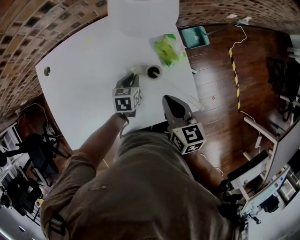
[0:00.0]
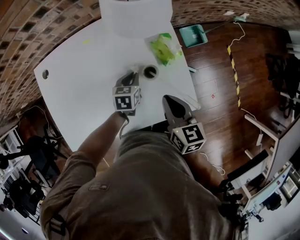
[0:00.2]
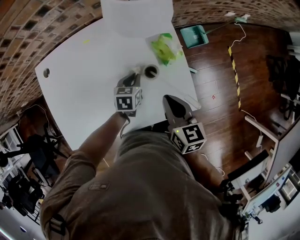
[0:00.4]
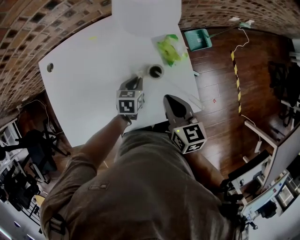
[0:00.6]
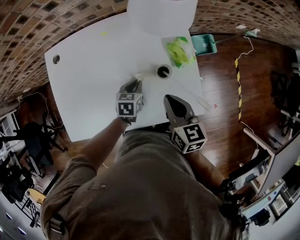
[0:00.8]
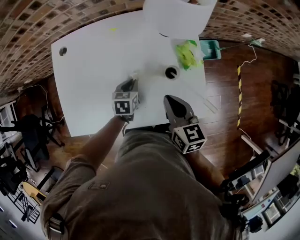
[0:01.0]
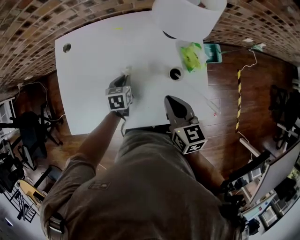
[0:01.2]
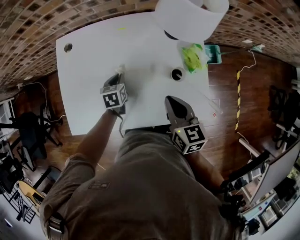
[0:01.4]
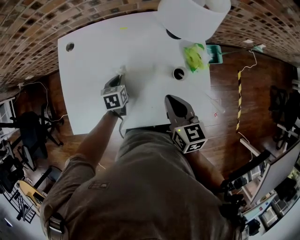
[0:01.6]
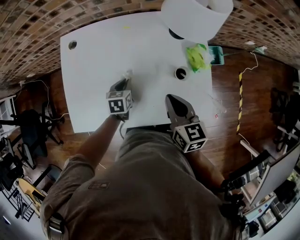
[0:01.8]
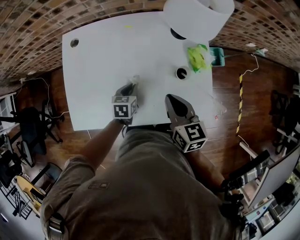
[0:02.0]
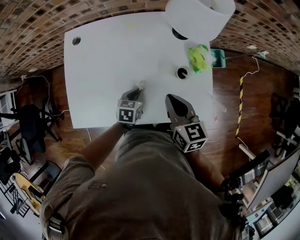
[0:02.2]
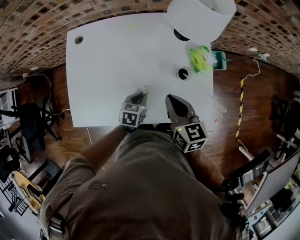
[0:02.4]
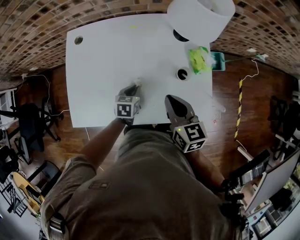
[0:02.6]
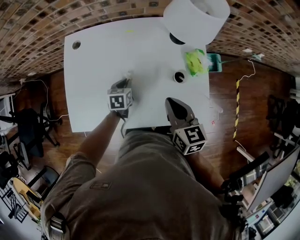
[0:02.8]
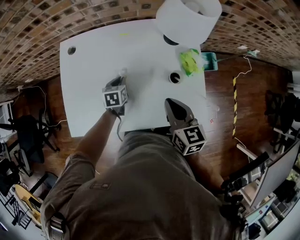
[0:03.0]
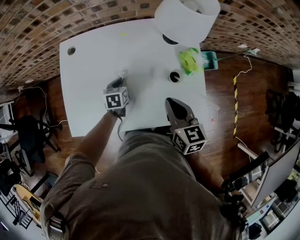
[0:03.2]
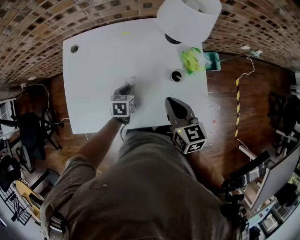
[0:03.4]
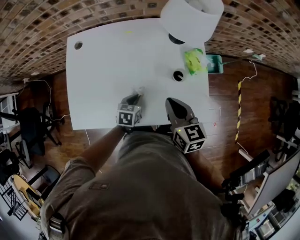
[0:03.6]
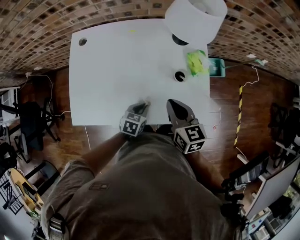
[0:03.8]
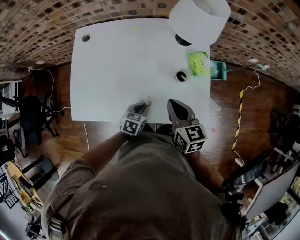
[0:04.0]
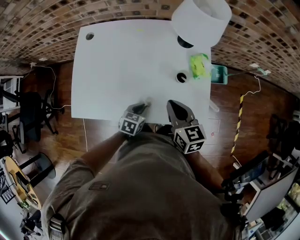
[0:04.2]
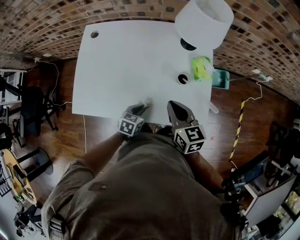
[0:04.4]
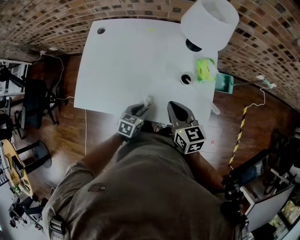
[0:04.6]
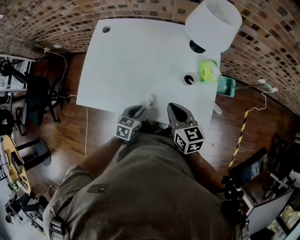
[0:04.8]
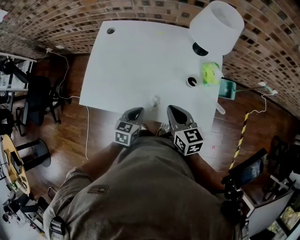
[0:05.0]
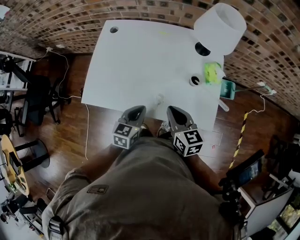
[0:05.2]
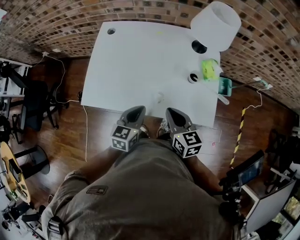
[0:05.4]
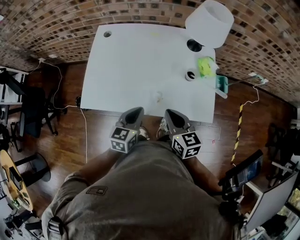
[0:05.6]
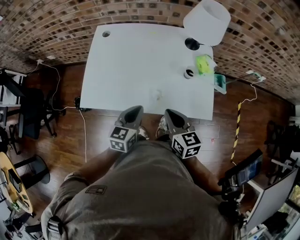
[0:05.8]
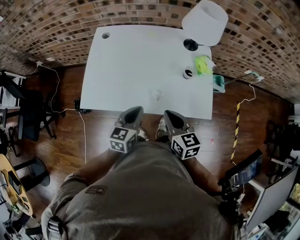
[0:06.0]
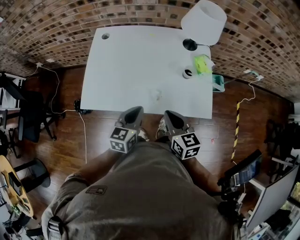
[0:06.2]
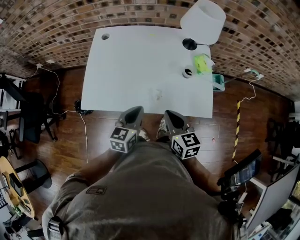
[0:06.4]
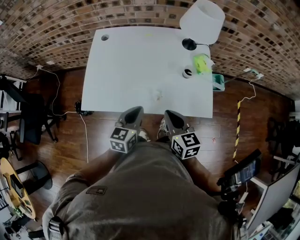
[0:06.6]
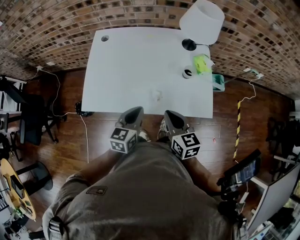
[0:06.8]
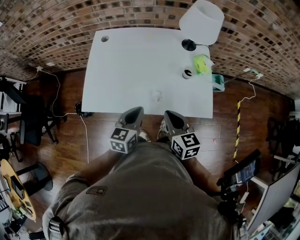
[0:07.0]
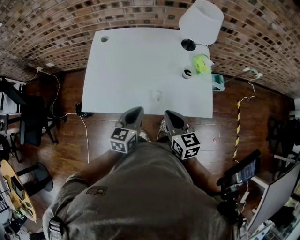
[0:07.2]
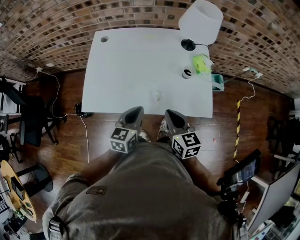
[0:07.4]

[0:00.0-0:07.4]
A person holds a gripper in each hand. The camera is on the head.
0:00.0 to 0:01.4: The right gripper travels to the left by roughly 5 cm, while the left gripper is displaced to the left by some 20 cm, and swivels about 20 degrees.
0:01.4 to 0:03.0: The left gripper travels backward and back again, some 10 cm each way.
0:03.0 to 0:04.4: The left gripper moves backward and to the right, about 20 cm.
0:04.4 to 0:06.0: The left gripper shifts some 20 cm upward and to the left, and turns by roughly 30 degrees, while the right gripper goes some 15 cm backward and to the left.
0:06.0 to 0:07.4: Neither gripper changes place.

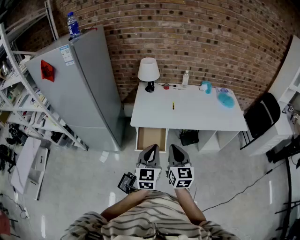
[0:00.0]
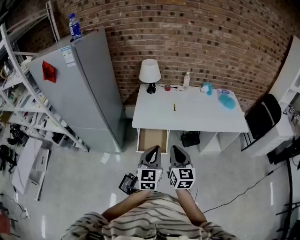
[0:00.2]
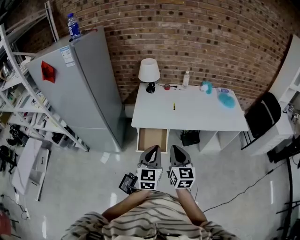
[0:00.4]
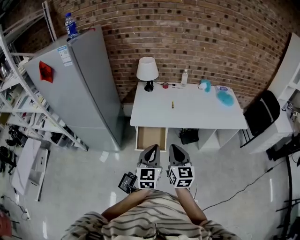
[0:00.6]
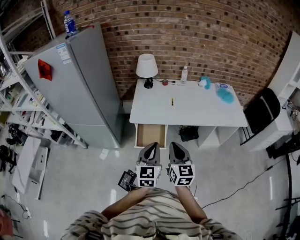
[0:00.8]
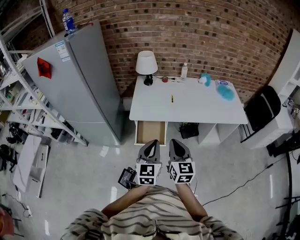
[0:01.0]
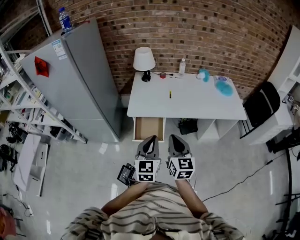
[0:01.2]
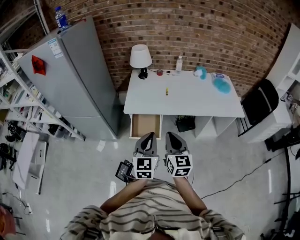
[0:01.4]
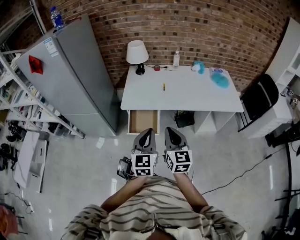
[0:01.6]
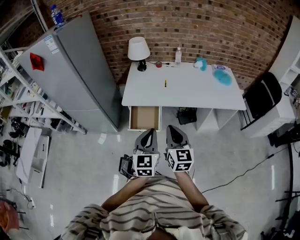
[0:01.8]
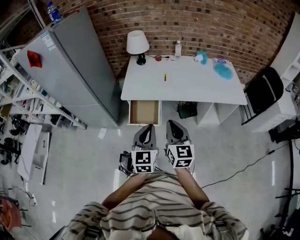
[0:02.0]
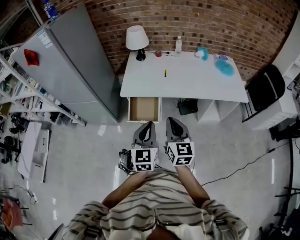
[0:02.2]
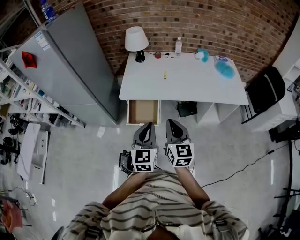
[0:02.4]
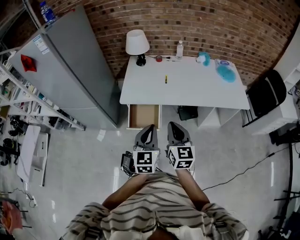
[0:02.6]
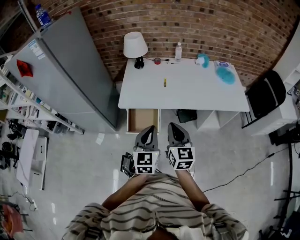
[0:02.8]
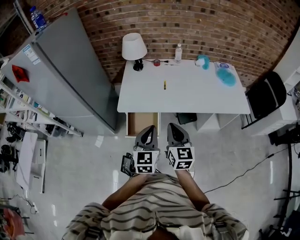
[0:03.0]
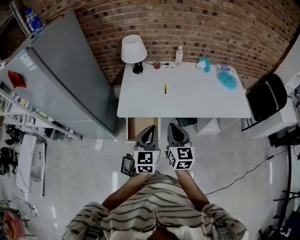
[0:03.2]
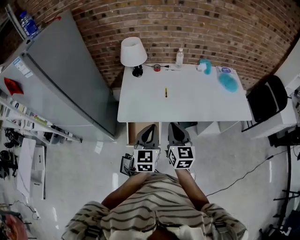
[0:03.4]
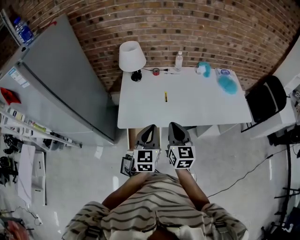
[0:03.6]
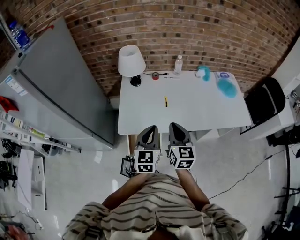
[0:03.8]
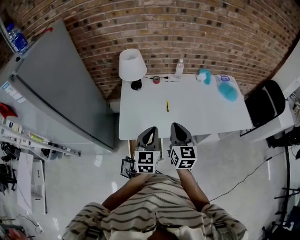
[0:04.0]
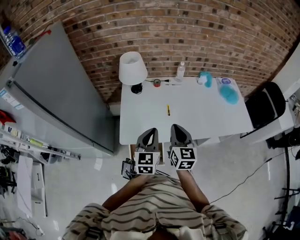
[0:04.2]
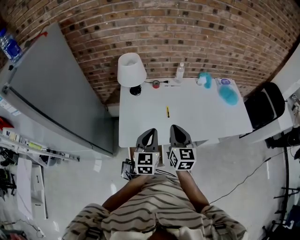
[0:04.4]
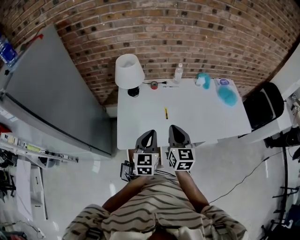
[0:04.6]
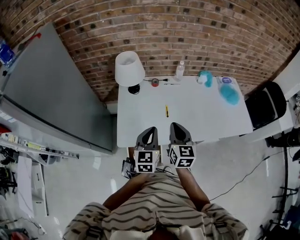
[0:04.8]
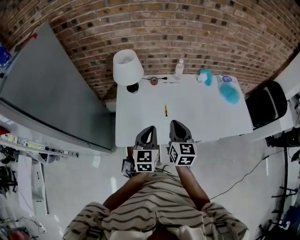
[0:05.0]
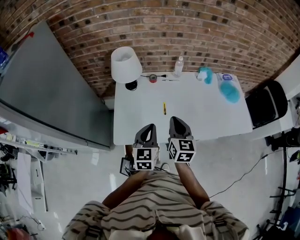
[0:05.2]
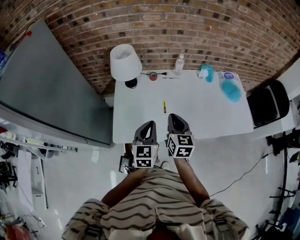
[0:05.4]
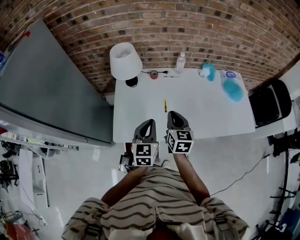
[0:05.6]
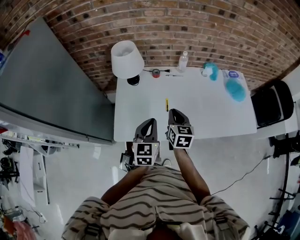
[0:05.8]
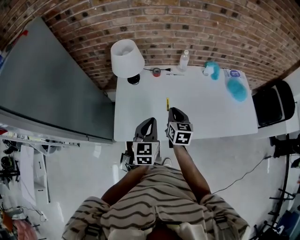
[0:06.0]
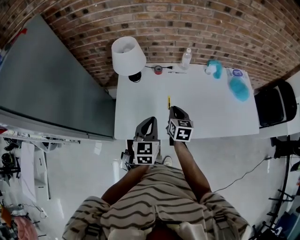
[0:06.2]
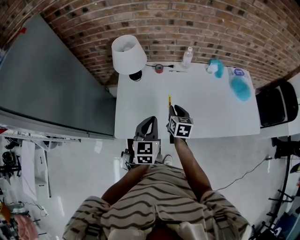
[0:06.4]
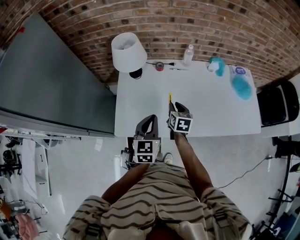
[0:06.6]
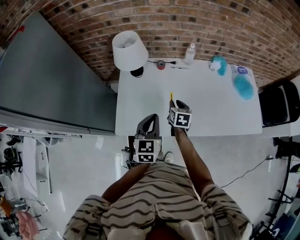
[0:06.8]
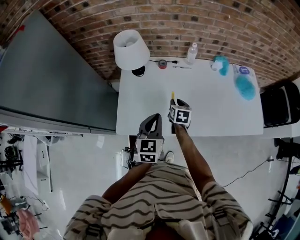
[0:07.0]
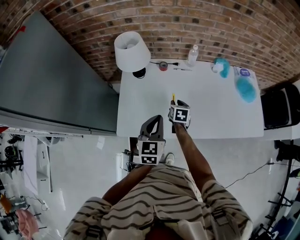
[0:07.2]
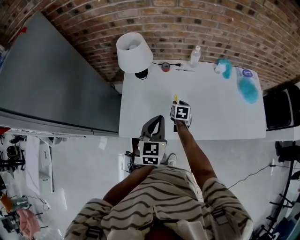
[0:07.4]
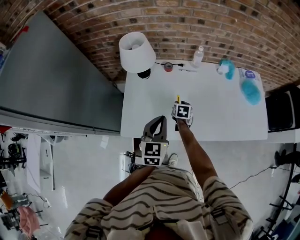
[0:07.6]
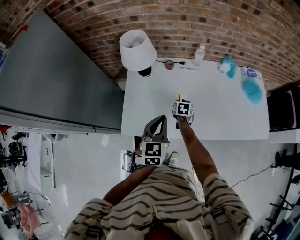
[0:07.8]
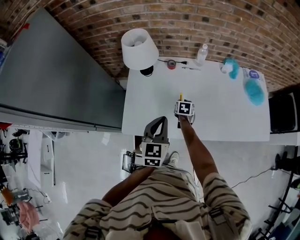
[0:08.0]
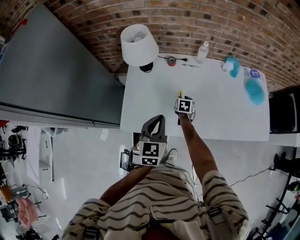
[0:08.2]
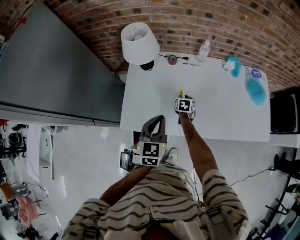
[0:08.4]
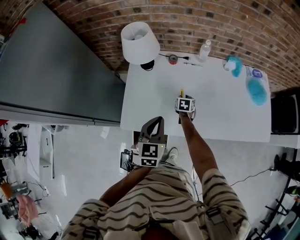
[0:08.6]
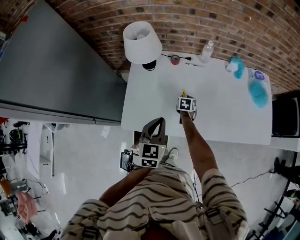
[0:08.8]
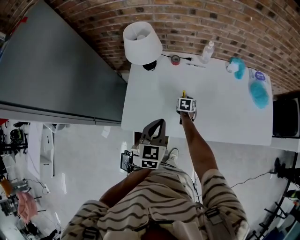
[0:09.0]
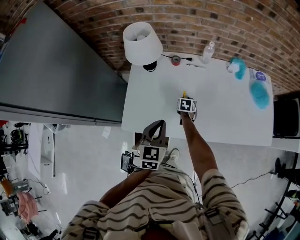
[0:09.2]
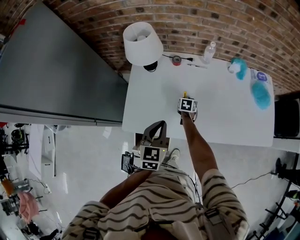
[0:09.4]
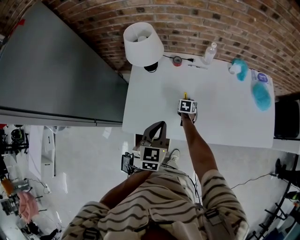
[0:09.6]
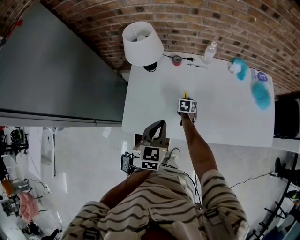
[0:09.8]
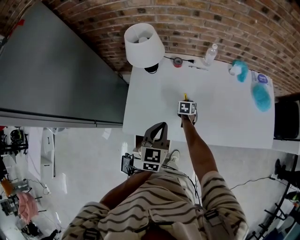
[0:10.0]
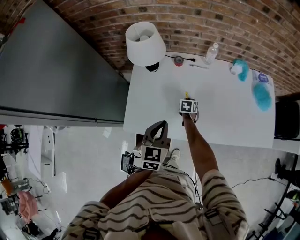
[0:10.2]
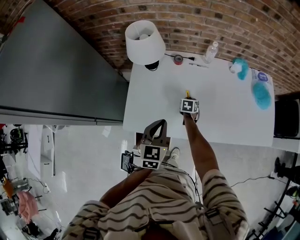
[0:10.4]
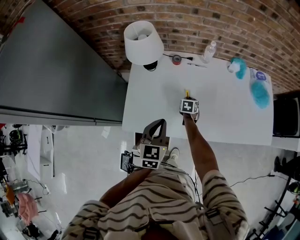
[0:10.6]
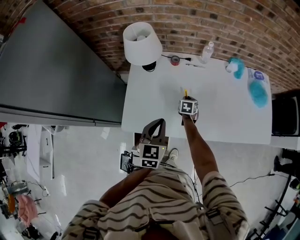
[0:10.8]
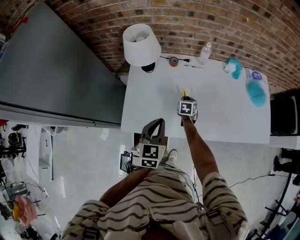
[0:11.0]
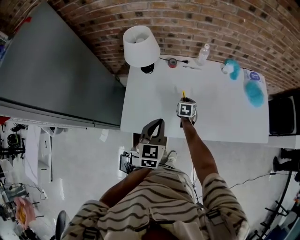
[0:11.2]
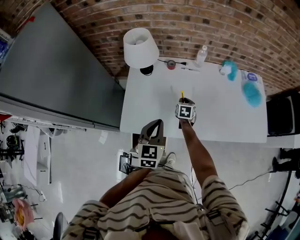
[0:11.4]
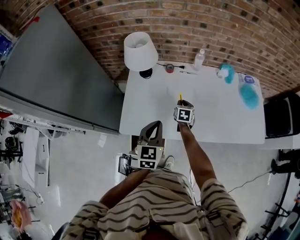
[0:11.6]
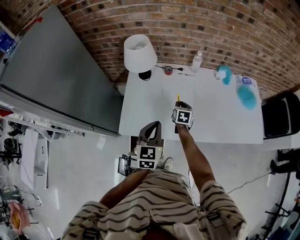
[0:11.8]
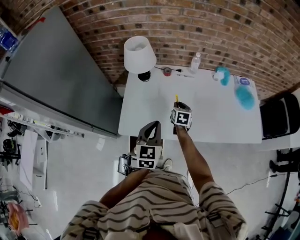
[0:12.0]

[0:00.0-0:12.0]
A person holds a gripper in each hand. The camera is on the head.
0:00.0 to 0:01.6: Both grippers move to the right, roughly 5 cm.
0:01.6 to 0:03.0: The grippers both shift forward by about 10 cm.
0:03.0 to 0:04.4: The grippers both shift forward by approximately 25 cm.
0:04.4 to 0:06.0: The right gripper is displaced forward and downward by approximately 15 cm. Meanwhile the left gripper moves forward, some 10 cm.
0:06.0 to 0:07.6: The right gripper is displaced downward and forward by about 20 cm, changes its angle by some 20 degrees, and opens up.
0:07.6 to 0:09.0: The right gripper moves downward, approximately 5 cm.
0:09.0 to 0:10.4: The grippers move only a little.
0:10.4 to 0:12.0: The left gripper heads upward and backward, covering some 5 cm, while the right gripper heads upward and backward, covering roughly 15 cm, and swivels approximately 20 degrees.

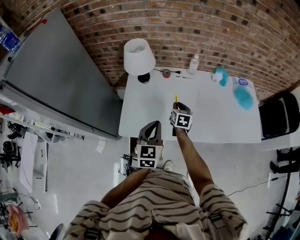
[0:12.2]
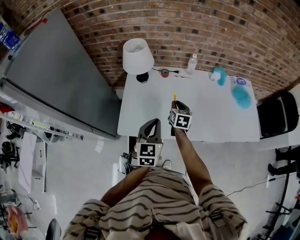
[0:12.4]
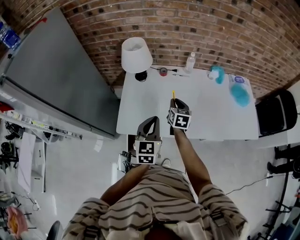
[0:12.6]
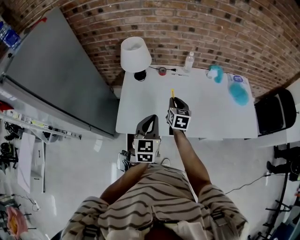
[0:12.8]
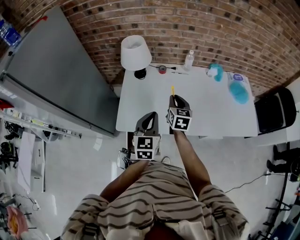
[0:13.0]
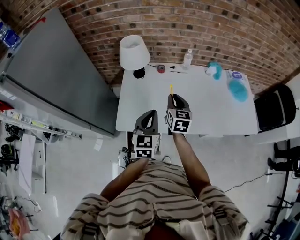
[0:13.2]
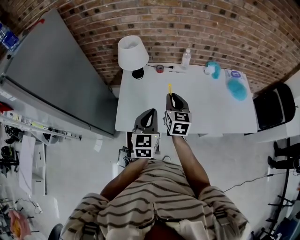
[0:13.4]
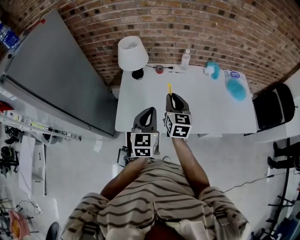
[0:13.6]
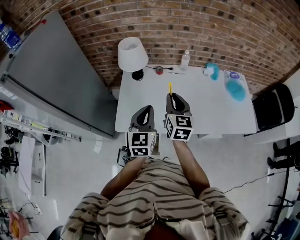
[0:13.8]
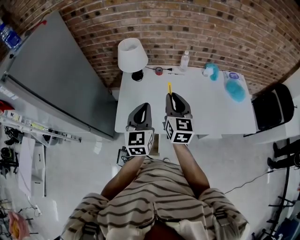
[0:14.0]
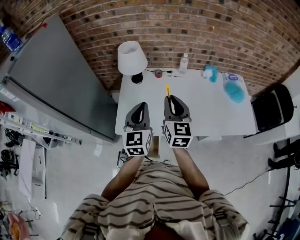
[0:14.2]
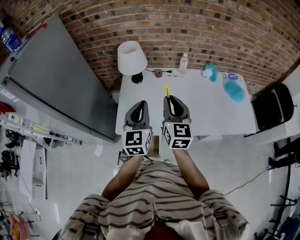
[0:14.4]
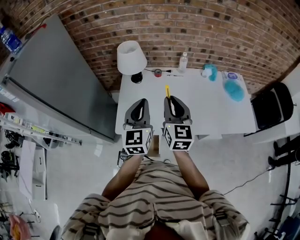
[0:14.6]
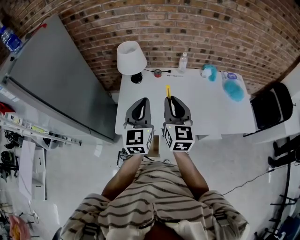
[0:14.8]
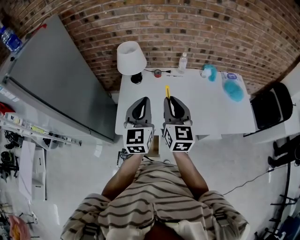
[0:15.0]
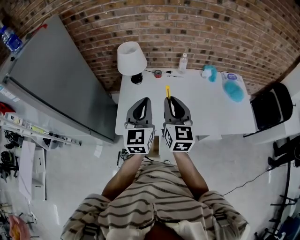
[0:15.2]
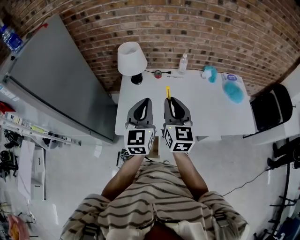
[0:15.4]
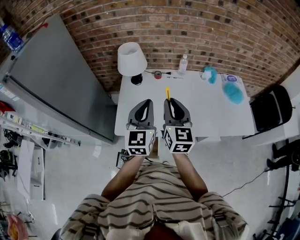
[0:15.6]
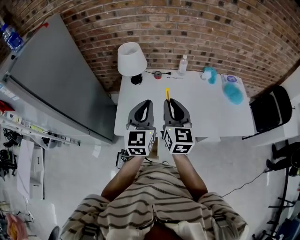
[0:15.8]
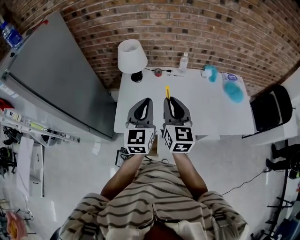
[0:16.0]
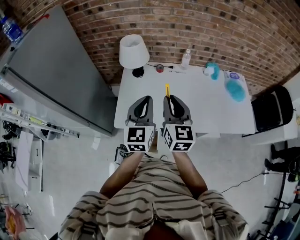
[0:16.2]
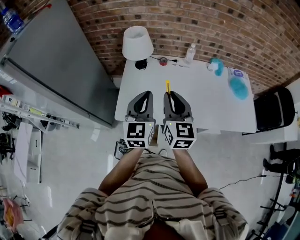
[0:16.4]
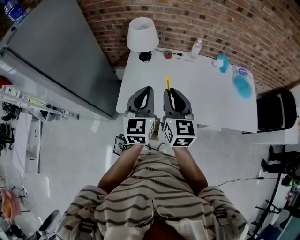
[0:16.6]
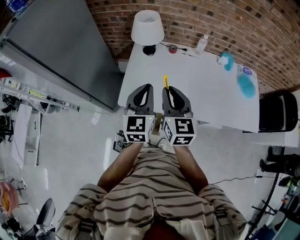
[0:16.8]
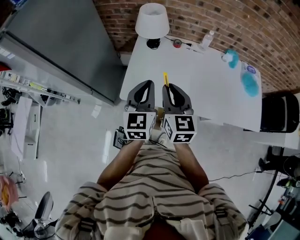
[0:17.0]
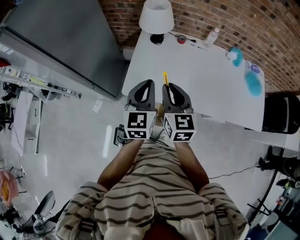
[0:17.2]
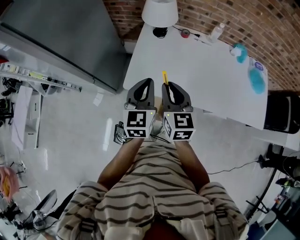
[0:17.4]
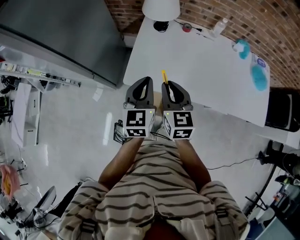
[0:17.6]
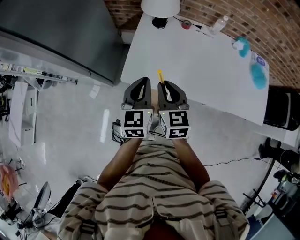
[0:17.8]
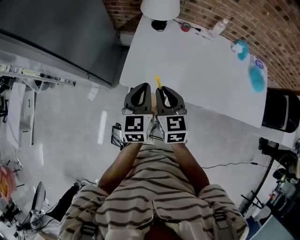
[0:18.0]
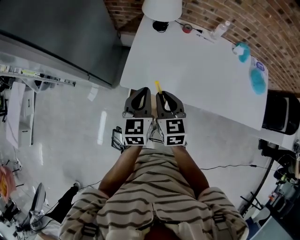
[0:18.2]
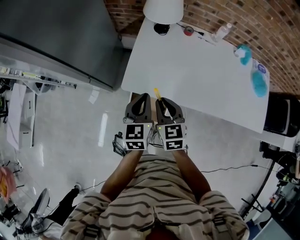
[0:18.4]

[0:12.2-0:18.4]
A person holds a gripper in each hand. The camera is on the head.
0:12.2 to 0:13.8: The right gripper heads upward and backward, covering some 20 cm, and turns by approximately 30 degrees. The left gripper travels upward by approximately 5 cm.
0:13.8 to 0:15.4: The two grippers go about 5 cm upward.
0:15.4 to 0:16.8: The left gripper travels downward and to the left by some 5 cm; the right gripper moves to the left, approximately 5 cm.
0:16.8 to 0:18.4: Both grippers move downward and to the left, about 15 cm. The right gripper rotates some 20 degrees.
